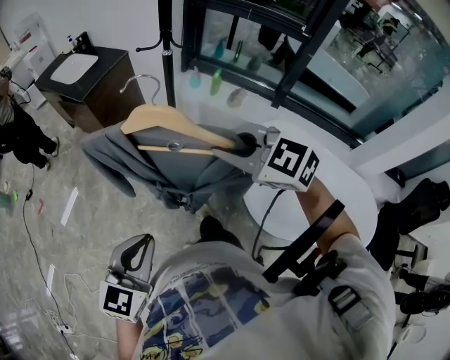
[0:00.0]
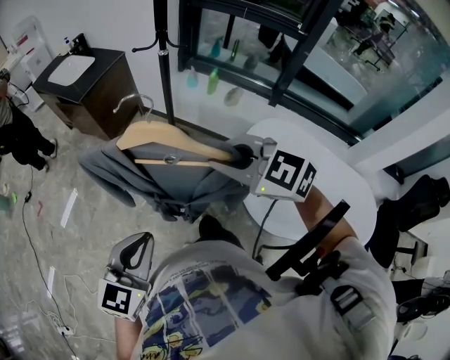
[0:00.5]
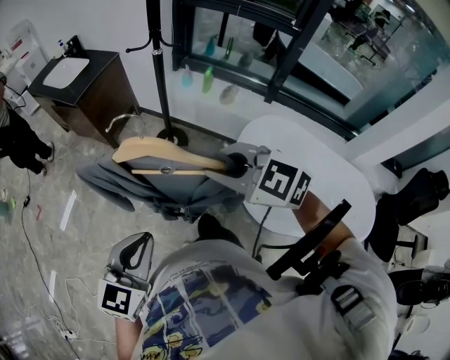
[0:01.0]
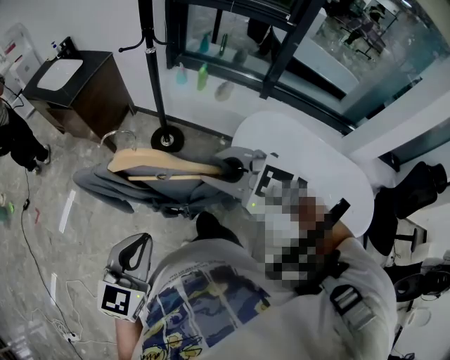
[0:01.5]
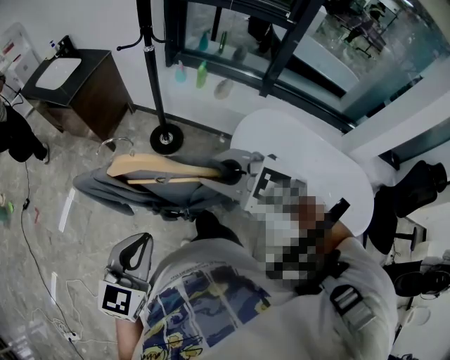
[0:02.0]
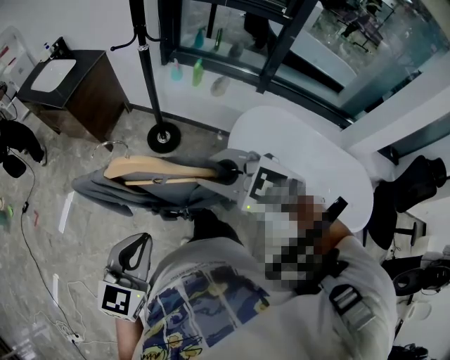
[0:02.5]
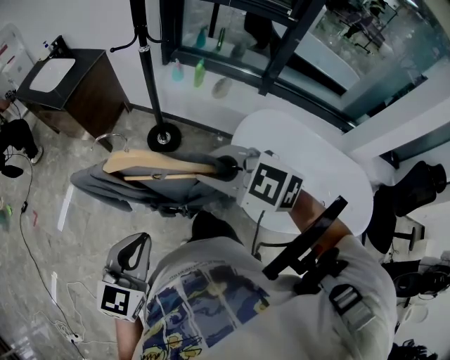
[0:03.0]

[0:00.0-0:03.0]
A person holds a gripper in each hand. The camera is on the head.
0:00.0 to 0:01.5: The right gripper travels backward by about 5 cm.
0:01.5 to 0:03.0: The grippers stay close to where they were, moving slightly.

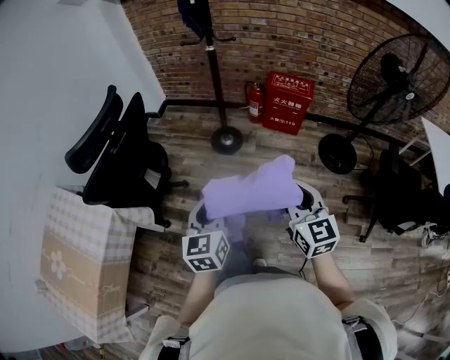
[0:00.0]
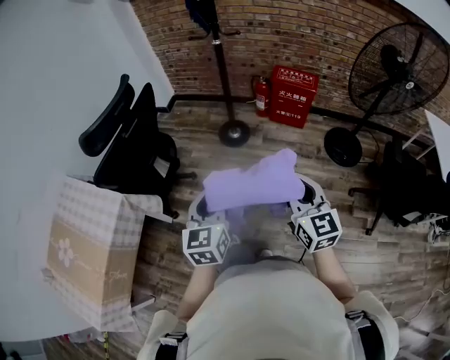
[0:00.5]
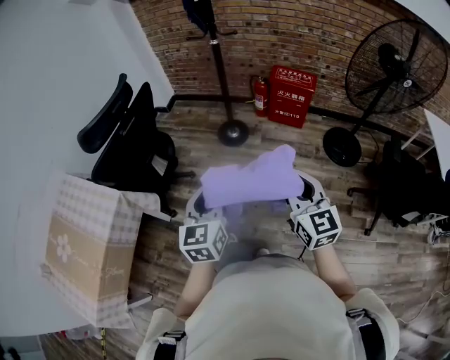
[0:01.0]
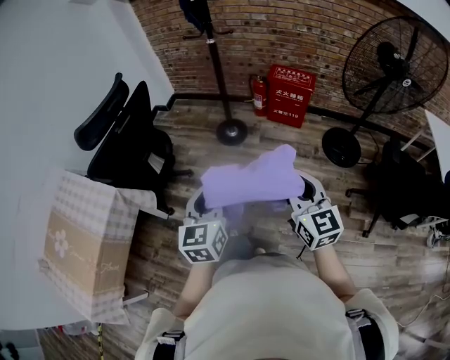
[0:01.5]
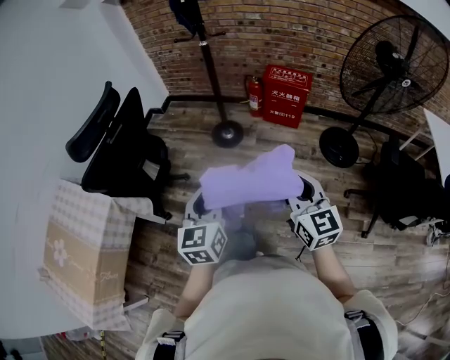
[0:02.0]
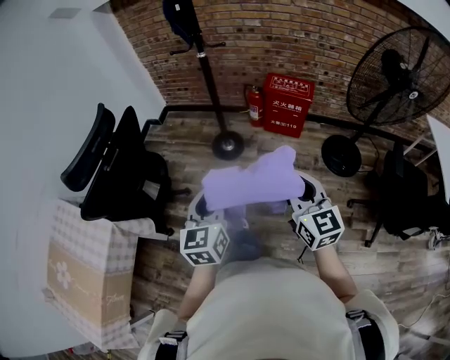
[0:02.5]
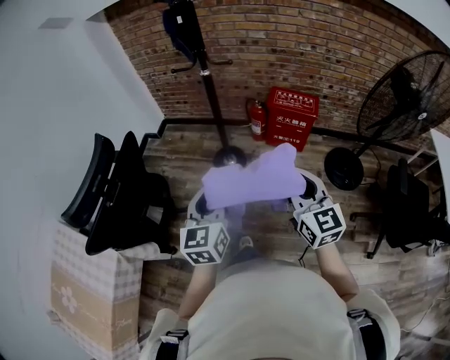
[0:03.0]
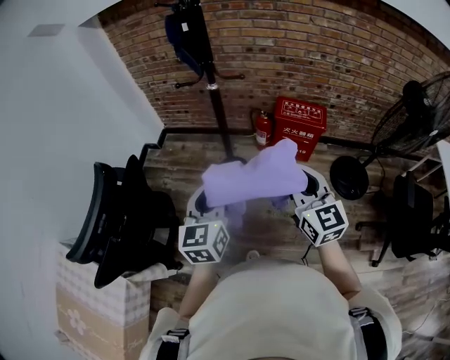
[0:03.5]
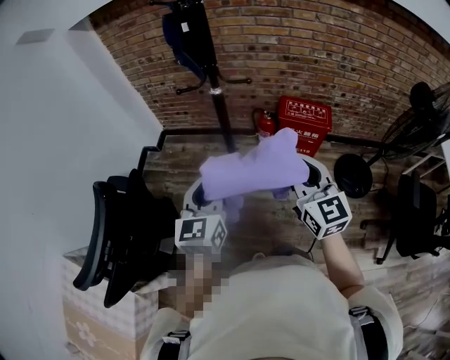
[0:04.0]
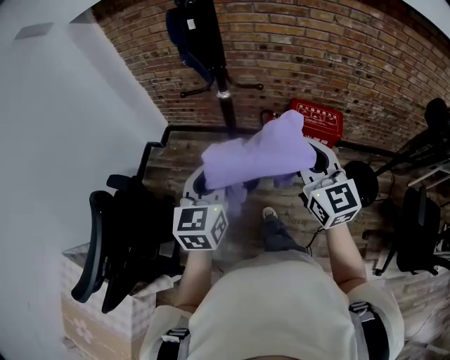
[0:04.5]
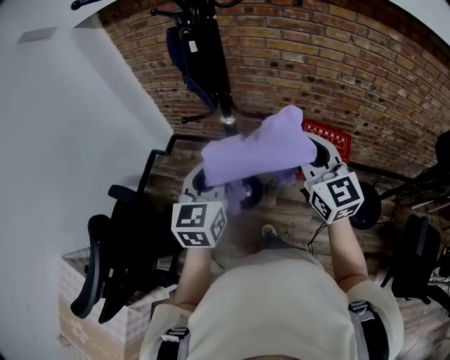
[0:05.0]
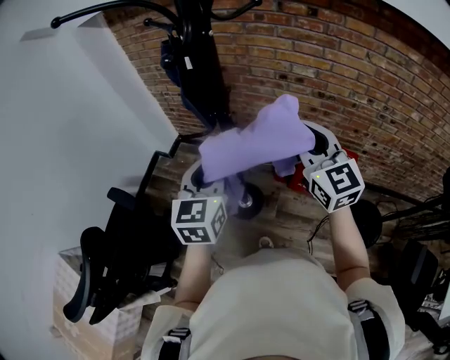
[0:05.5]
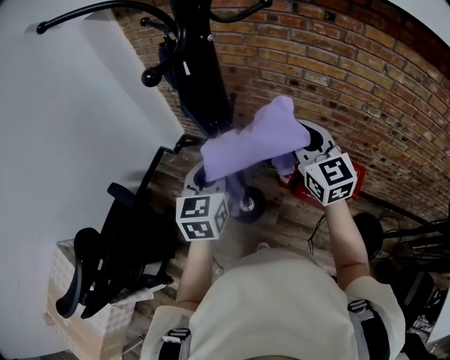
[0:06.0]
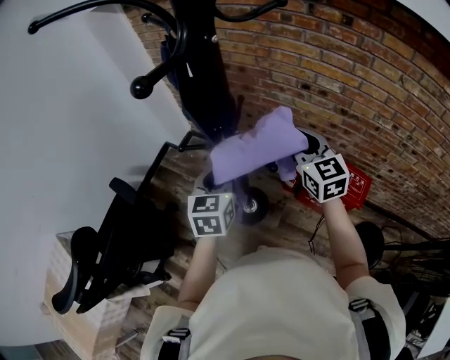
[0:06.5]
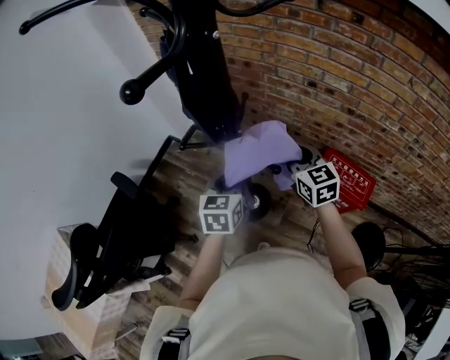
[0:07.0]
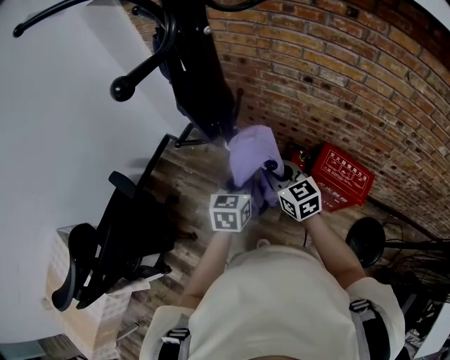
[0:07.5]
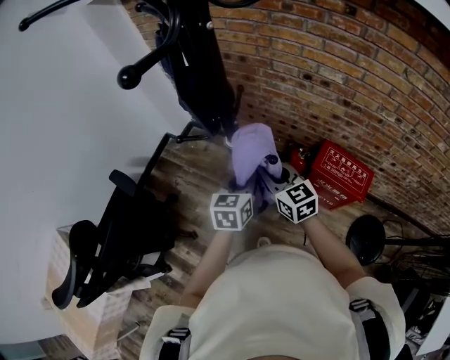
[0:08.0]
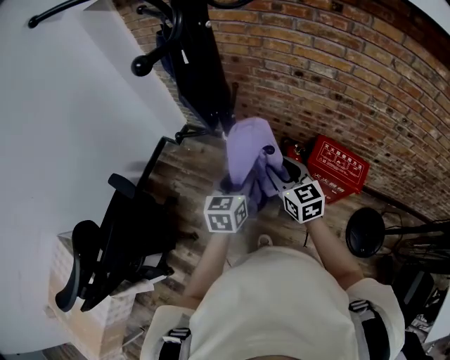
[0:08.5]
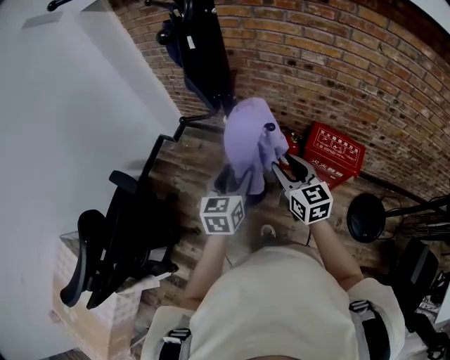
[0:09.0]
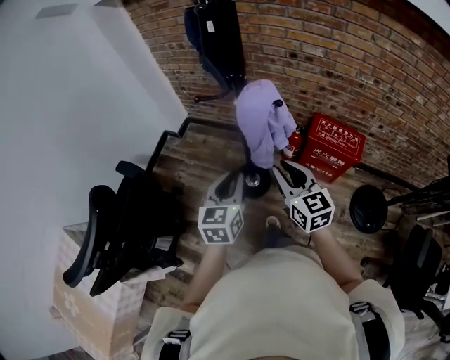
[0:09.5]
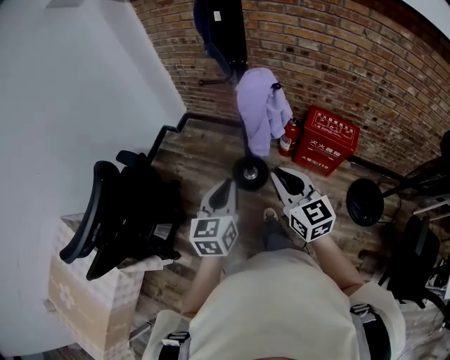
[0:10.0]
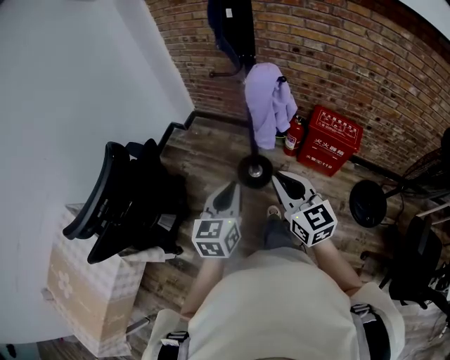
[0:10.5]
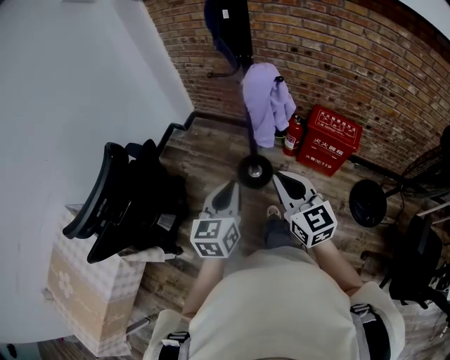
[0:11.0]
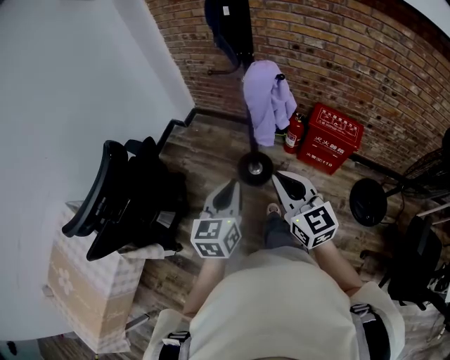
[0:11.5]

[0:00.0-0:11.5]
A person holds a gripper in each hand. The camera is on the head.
0:00.0 to 0:02.0: The two grippers go some 5 cm to the right.
0:02.0 to 0:04.0: The grippers both shift forward by roughly 40 cm.
0:04.0 to 0:06.0: Both grippers travel together forward, roughly 30 cm.
0:06.0 to 0:07.5: The left gripper travels downward and to the right by roughly 15 cm, while the right gripper is displaced downward by some 20 cm, and turns by approximately 20 degrees.
0:07.5 to 0:09.5: The right gripper travels backward by approximately 20 cm; the left gripper is displaced backward and to the left by approximately 20 cm, and opens and closes again.
0:09.5 to 0:11.5: Both grippers move backward, roughly 15 cm.

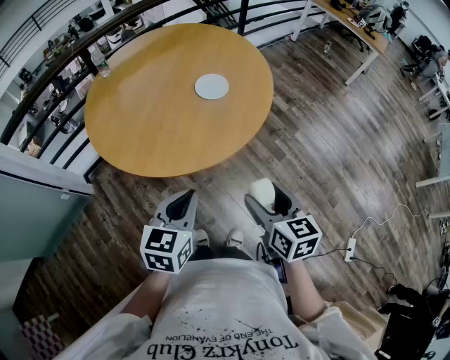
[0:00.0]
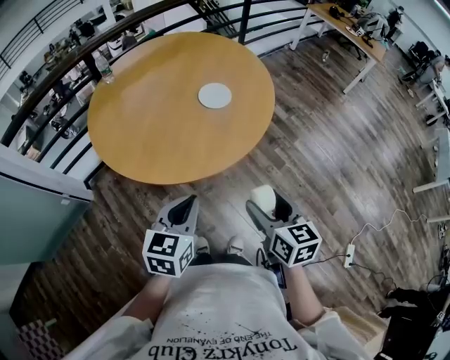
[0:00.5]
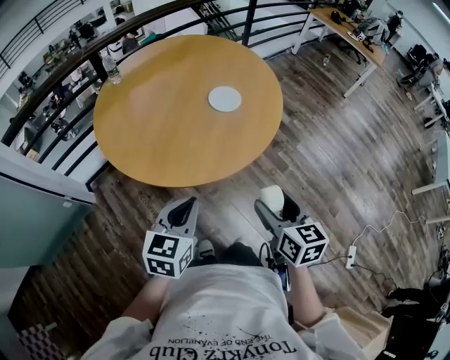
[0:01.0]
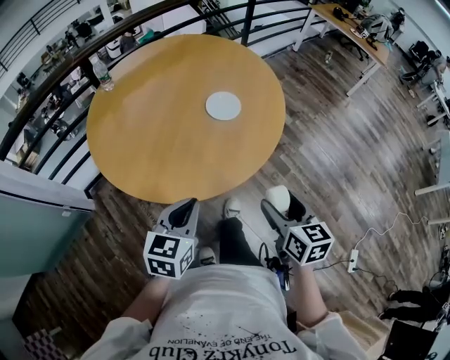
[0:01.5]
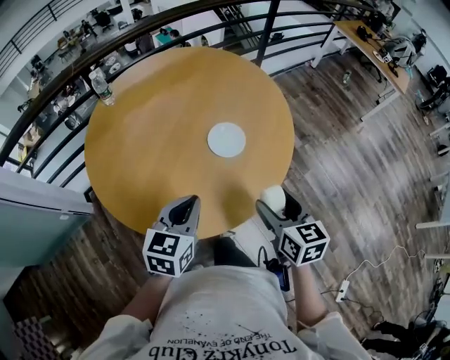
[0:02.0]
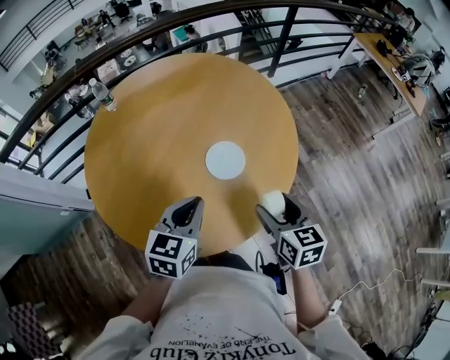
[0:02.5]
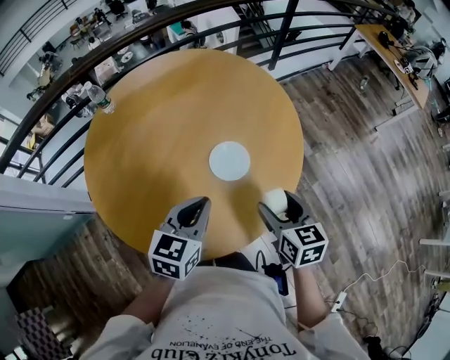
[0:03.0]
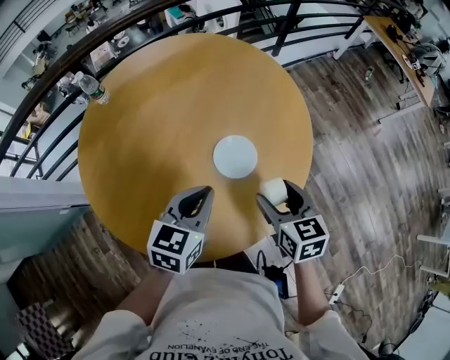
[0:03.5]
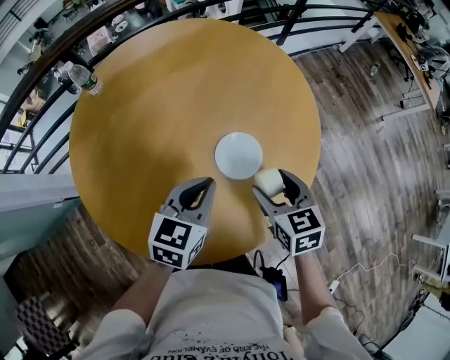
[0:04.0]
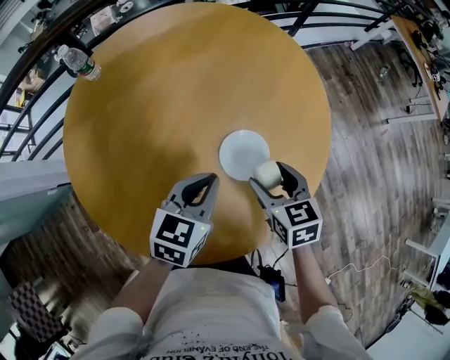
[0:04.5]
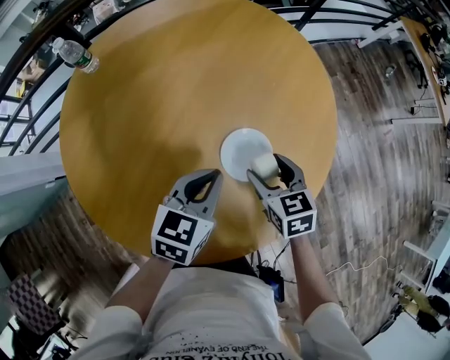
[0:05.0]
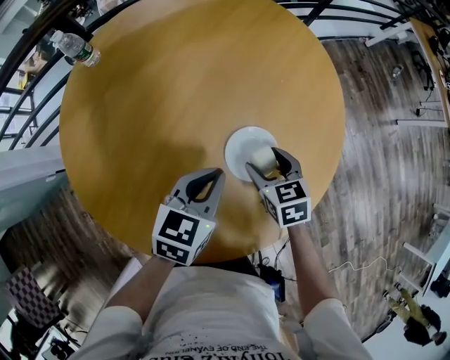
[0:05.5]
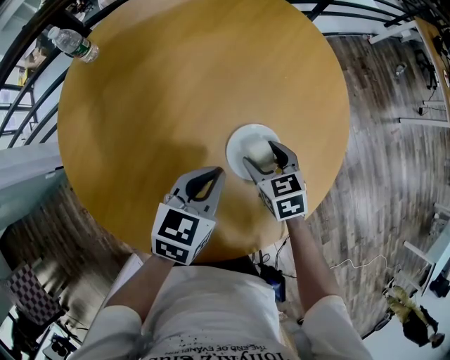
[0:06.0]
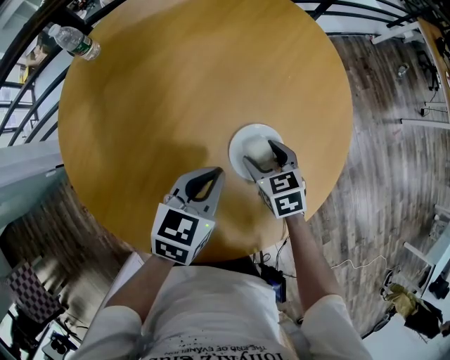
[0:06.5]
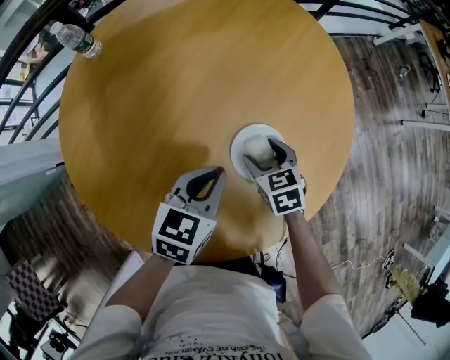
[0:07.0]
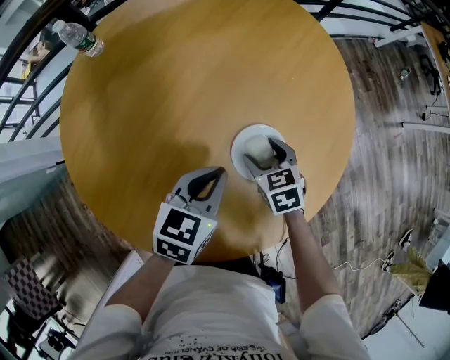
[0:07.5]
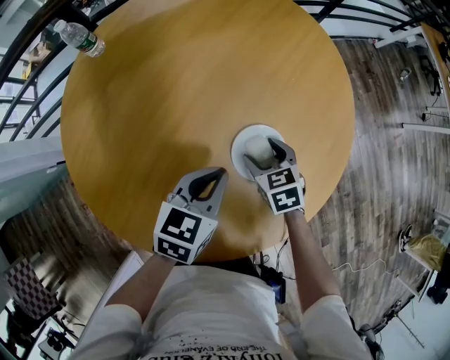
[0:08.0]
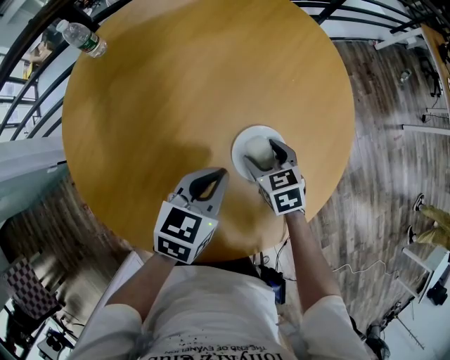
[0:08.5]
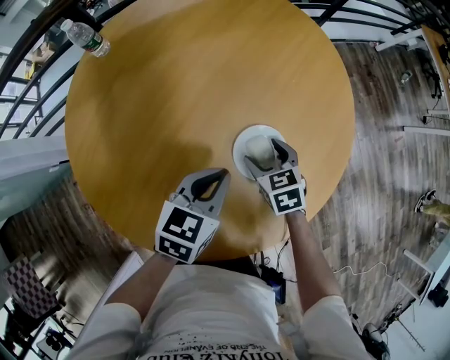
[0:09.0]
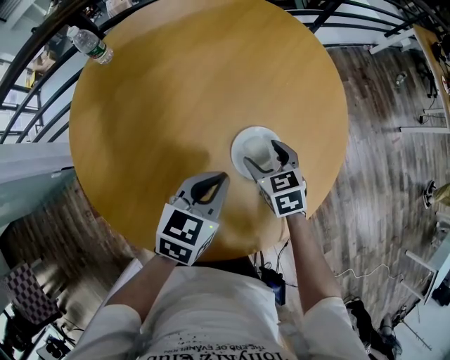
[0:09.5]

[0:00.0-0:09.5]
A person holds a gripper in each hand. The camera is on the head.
0:00.0 to 0:02.0: The two grippers go about 25 cm forward.
0:02.0 to 0:04.0: The right gripper goes some 20 cm forward and downward; the left gripper goes approximately 20 cm forward.
0:04.0 to 0:05.5: The right gripper moves downward and forward, roughly 15 cm. The left gripper travels downward by about 5 cm.
0:05.5 to 0:09.5: The grippers stay close to where they were, moving slightly.

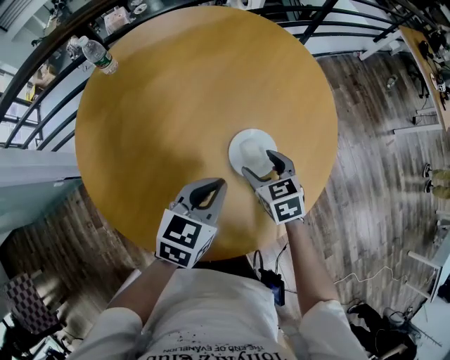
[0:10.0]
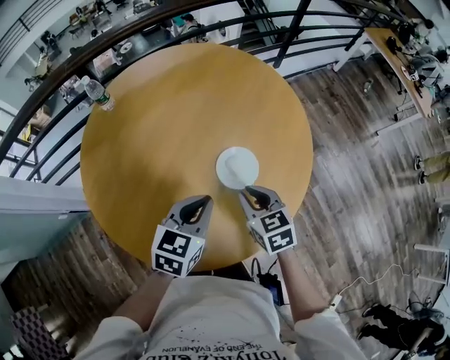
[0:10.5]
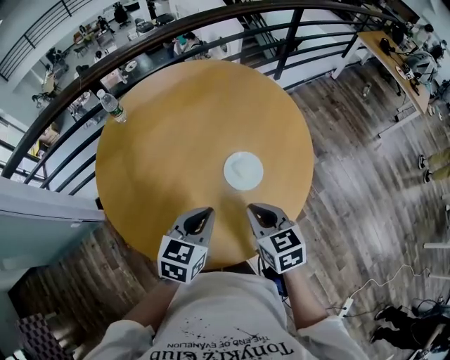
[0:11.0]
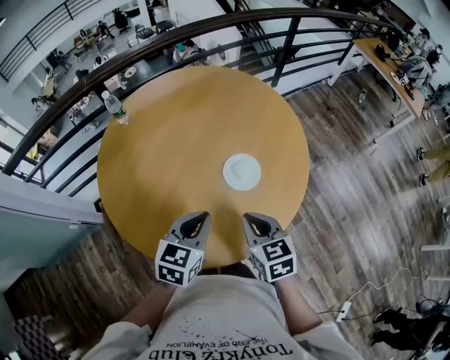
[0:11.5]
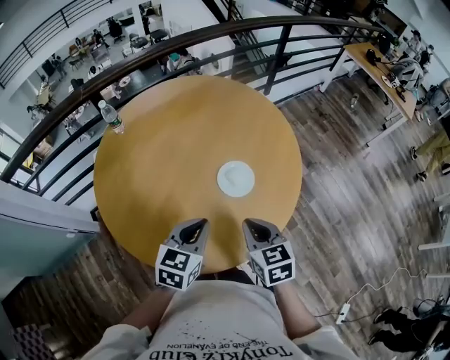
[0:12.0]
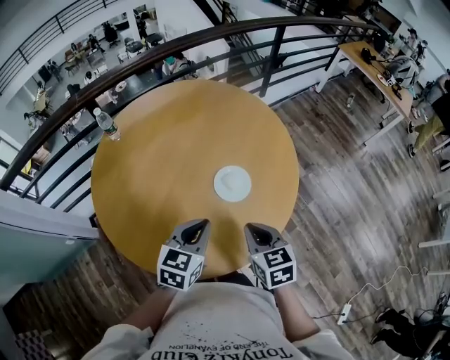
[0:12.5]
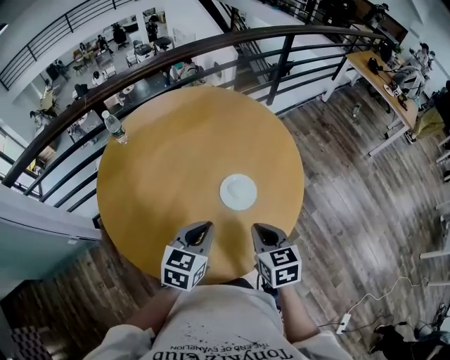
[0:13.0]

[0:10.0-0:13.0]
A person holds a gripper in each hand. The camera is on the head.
0:10.0 to 0:11.5: The left gripper is displaced backward and upward by roughly 15 cm, while the right gripper travels backward and upward by about 25 cm, and closes up.
0:11.5 to 0:13.0: There are only small adjustments of the grippers.
